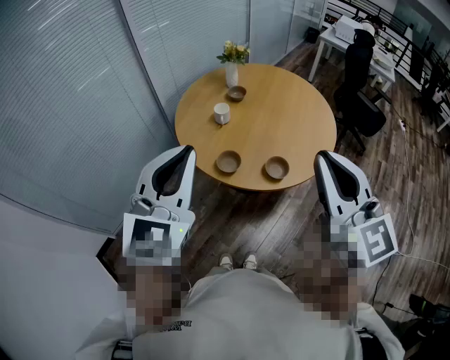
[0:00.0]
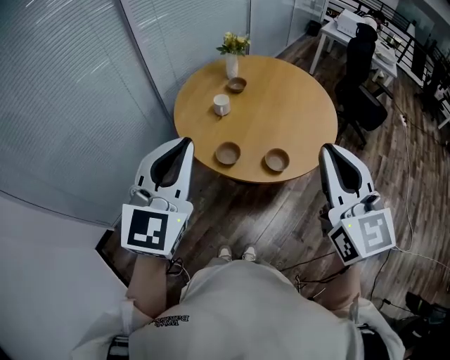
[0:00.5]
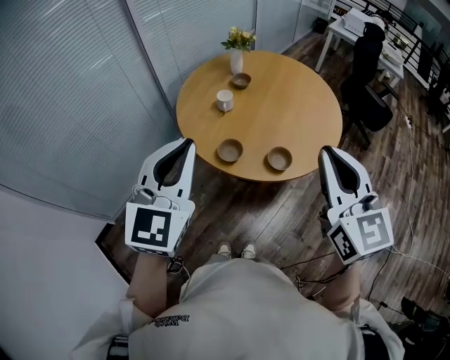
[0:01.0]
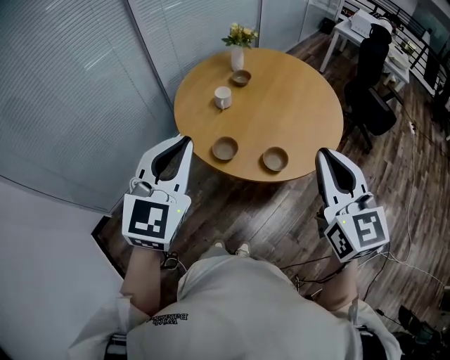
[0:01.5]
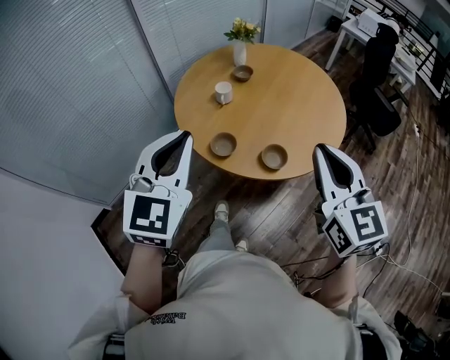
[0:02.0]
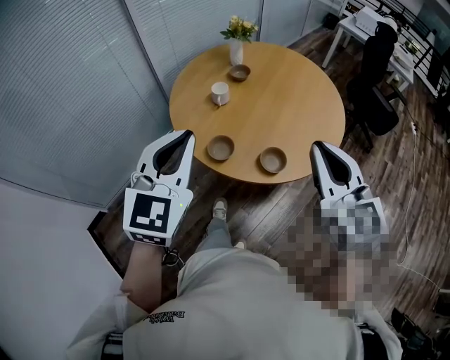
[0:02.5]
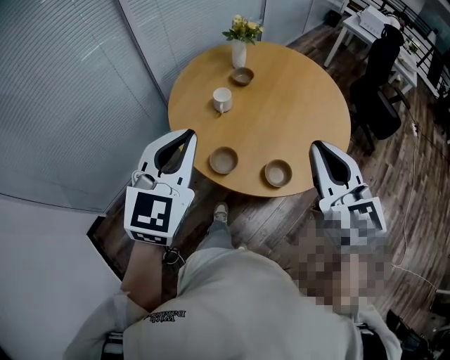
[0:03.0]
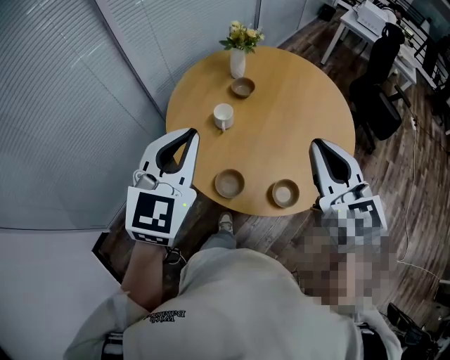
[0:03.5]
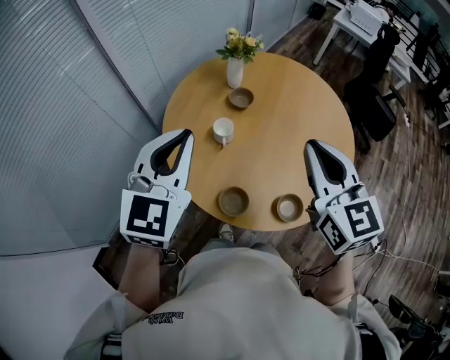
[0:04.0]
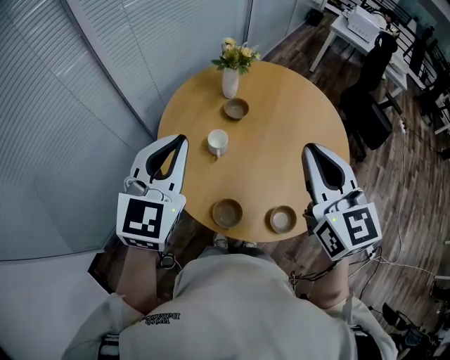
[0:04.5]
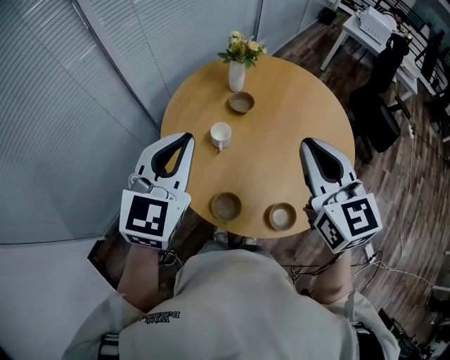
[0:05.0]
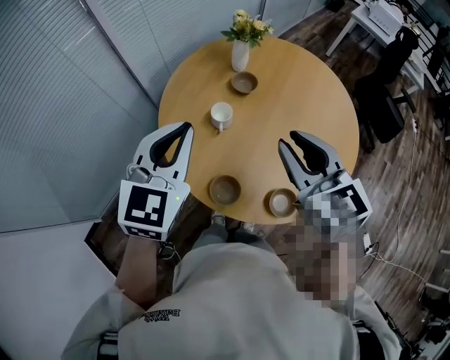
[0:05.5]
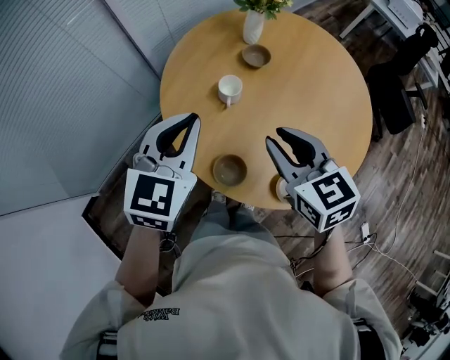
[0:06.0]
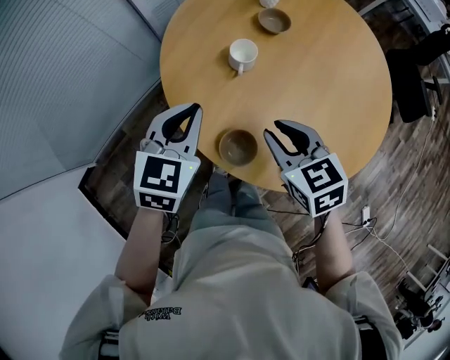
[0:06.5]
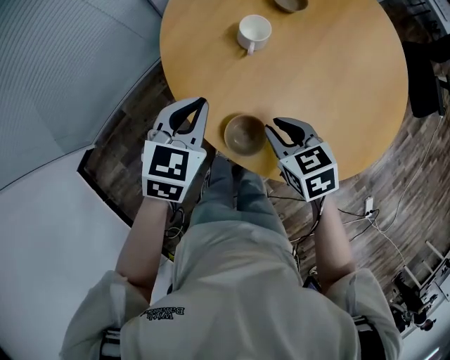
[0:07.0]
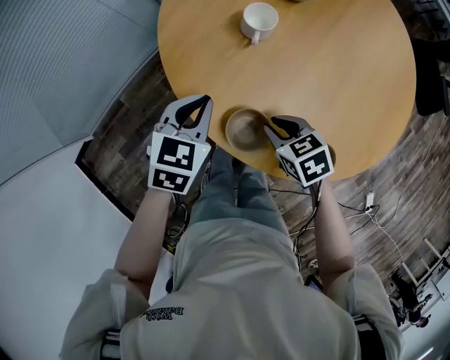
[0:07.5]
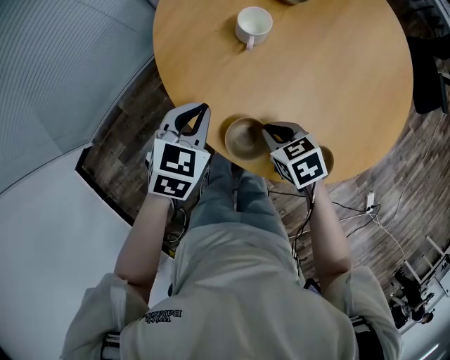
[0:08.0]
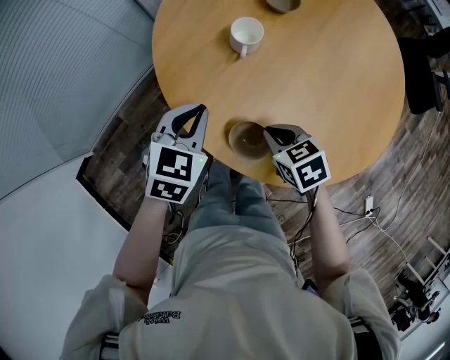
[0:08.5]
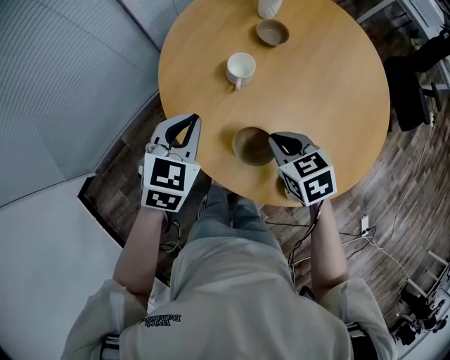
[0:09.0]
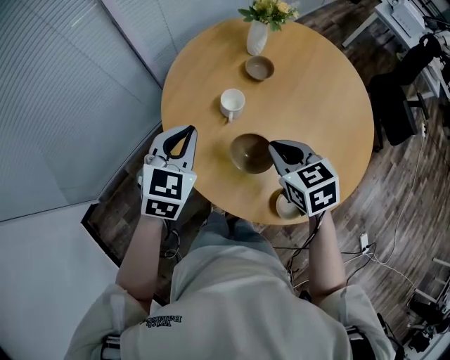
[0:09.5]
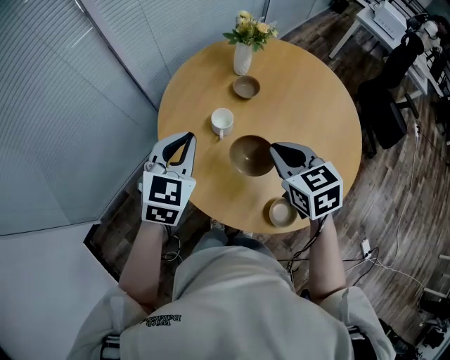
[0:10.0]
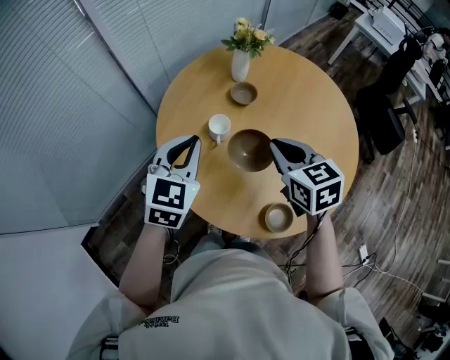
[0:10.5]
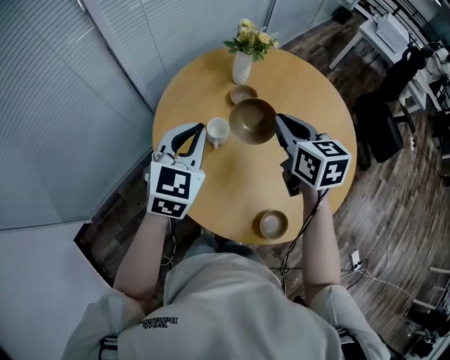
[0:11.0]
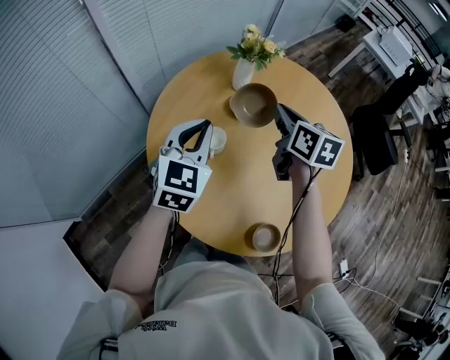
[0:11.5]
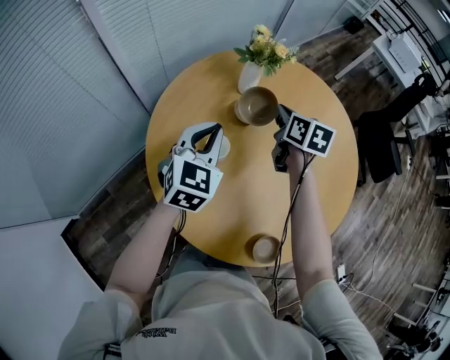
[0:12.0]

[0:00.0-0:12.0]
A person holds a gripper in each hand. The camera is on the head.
0:00.0 to 0:02.0: The right gripper goes approximately 10 cm downward, to the right and forward, while the left gripper goes about 5 cm downward.
0:02.0 to 0:04.0: Both grippers travel together forward, some 30 cm.
0:04.0 to 0:06.0: The left gripper shifts approximately 10 cm downward, while the right gripper heads downward and to the left, covering approximately 15 cm, and turns by roughly 30 degrees.
0:06.0 to 0:08.0: The grippers both shift downward by about 30 cm. The left gripper swivels some 30 degrees. Meanwhile the right gripper angles its fingers downward, by approximately 30 degrees.
0:08.0 to 0:10.0: Both grippers move upward, roughly 25 cm. The left gripper changes its angle by roughly 20 degrees; the right gripper rotates some 30 degrees.
0:10.0 to 0:12.0: The right gripper heads forward, covering approximately 25 cm, and turns by roughly 30 degrees. Meanwhile the left gripper heads forward and to the right, covering some 15 cm.

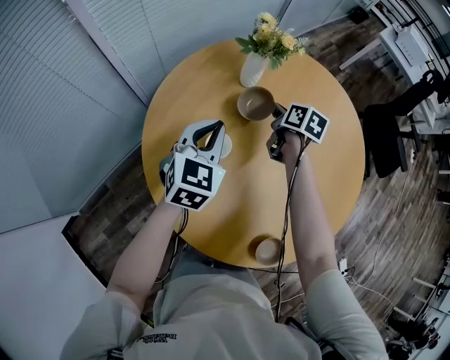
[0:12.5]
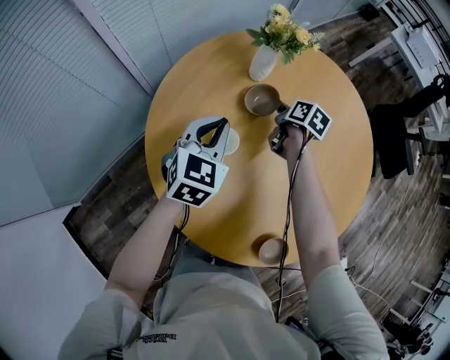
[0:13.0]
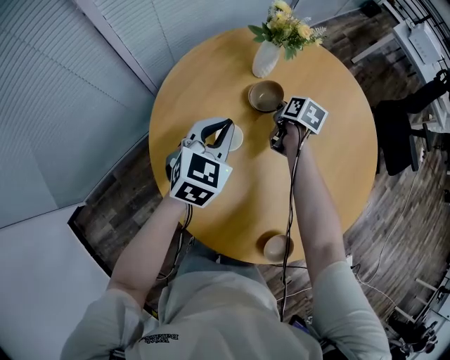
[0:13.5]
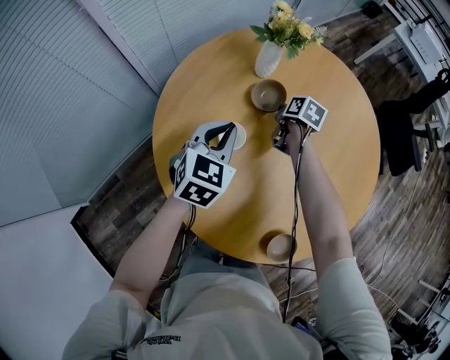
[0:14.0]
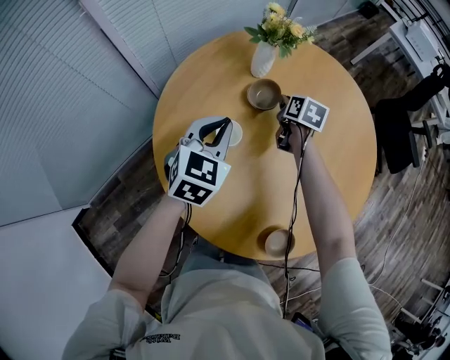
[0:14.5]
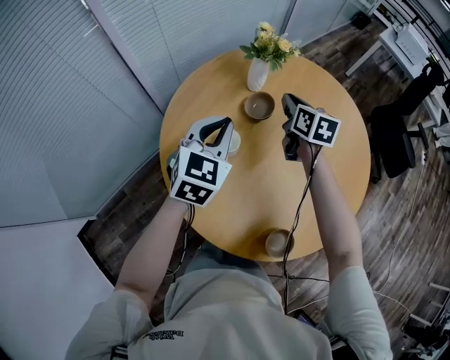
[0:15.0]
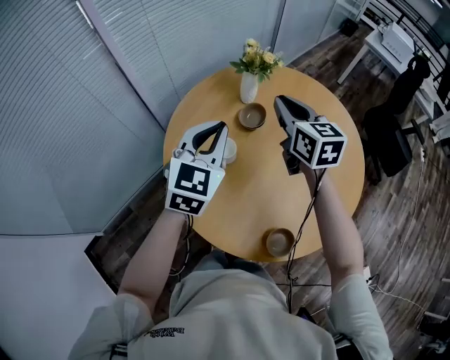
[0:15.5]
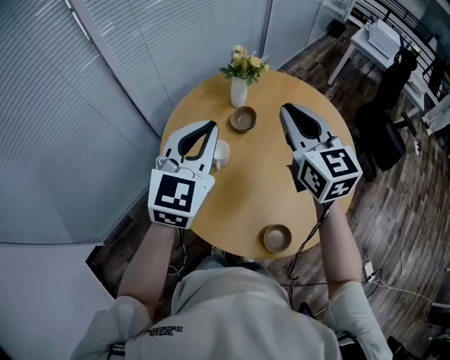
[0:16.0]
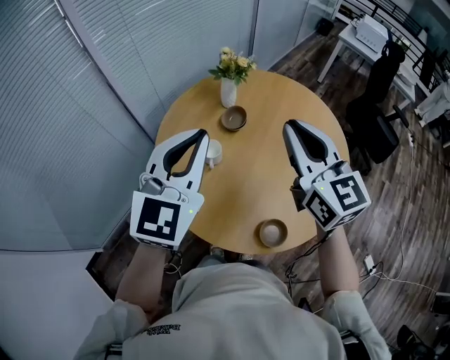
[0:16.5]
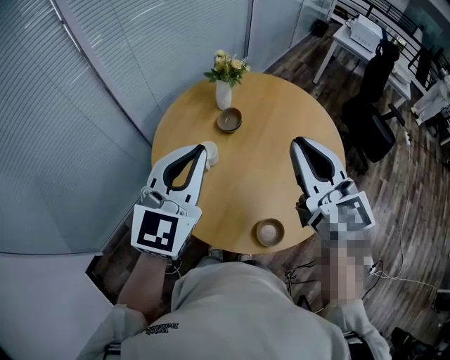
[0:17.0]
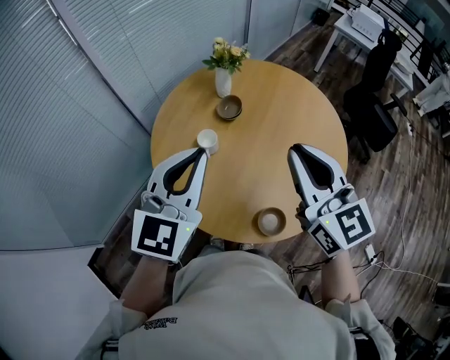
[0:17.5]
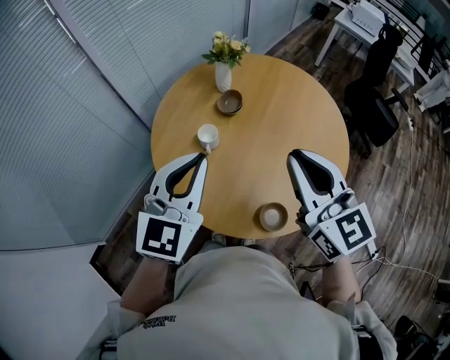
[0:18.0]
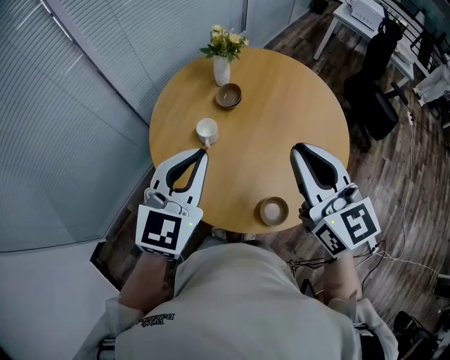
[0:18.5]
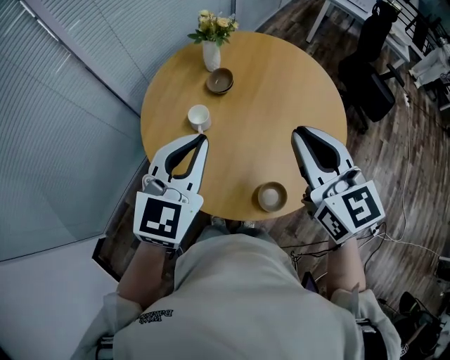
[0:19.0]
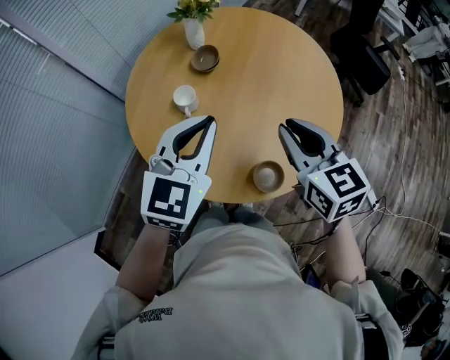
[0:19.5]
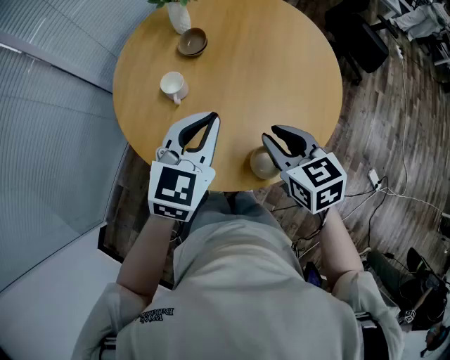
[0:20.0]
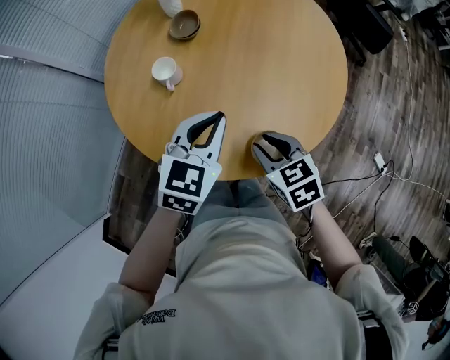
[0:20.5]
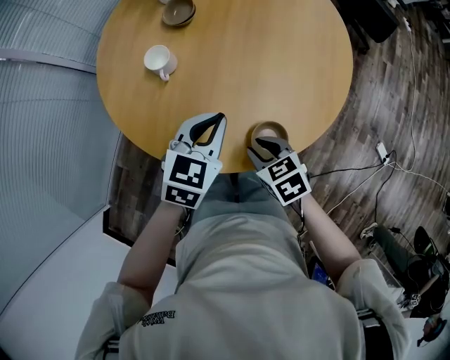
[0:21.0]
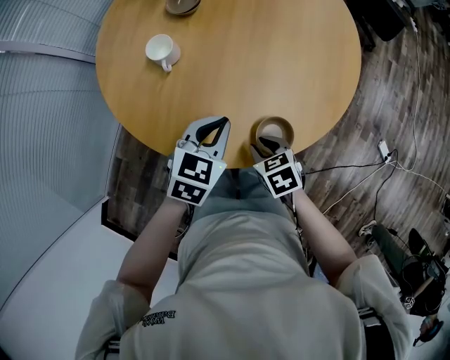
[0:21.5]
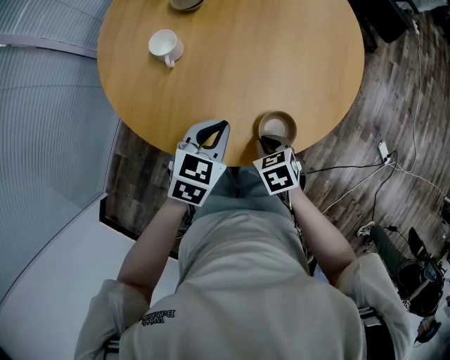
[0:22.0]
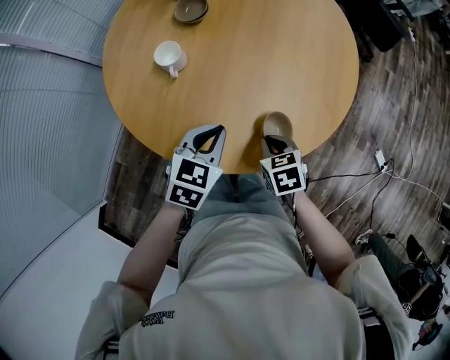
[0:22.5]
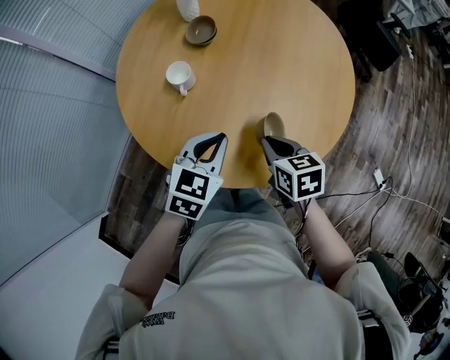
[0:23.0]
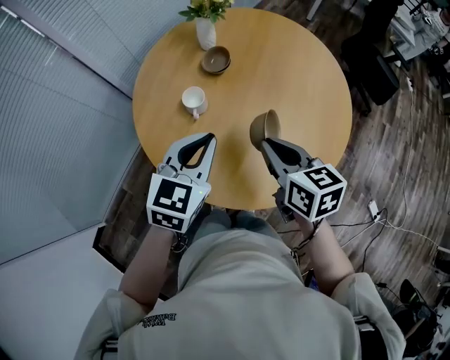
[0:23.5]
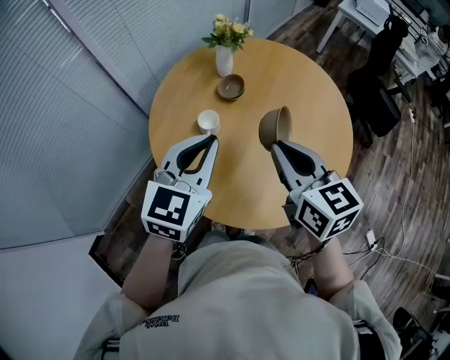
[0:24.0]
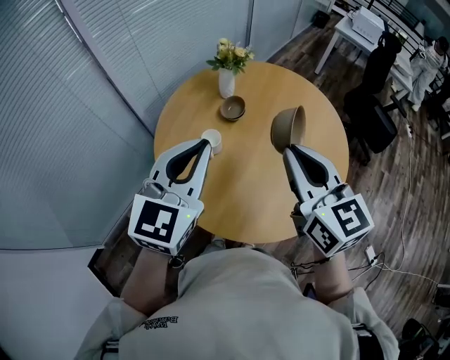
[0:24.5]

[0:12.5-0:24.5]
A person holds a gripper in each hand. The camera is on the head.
0:14.5 to 0:16.5: The left gripper is displaced upward and backward by roughly 30 cm, and rotates some 30 degrees. Meanwhile the right gripper is displaced upward and backward by roughly 50 cm, and tips its fingers upward by some 40 degrees.
0:16.5 to 0:18.5: The left gripper heads downward and backward, covering roughly 10 cm. The right gripper shifts approximately 10 cm backward.
0:18.5 to 0:20.5: The right gripper is displaced downward by approximately 30 cm, and tilts its fingers some 40 degrees downward. The left gripper moves downward and to the right, some 20 cm, and turns by approximately 20 degrees.
0:20.5 to 0:22.5: The grippers both shift downward by some 10 cm.
0:22.5 to 0:24.5: Both grippers move upward, approximately 35 cm. The right gripper tips its fingers upward by approximately 50 degrees. The left gripper tilts its fingers some 30 degrees upward.

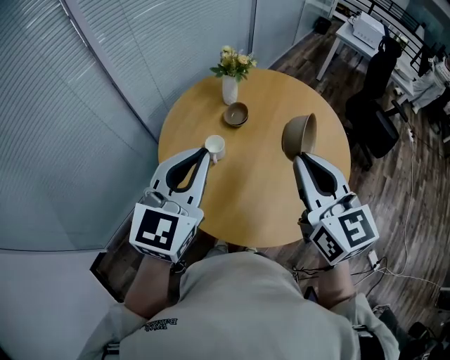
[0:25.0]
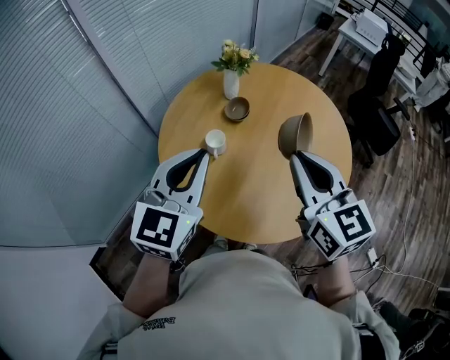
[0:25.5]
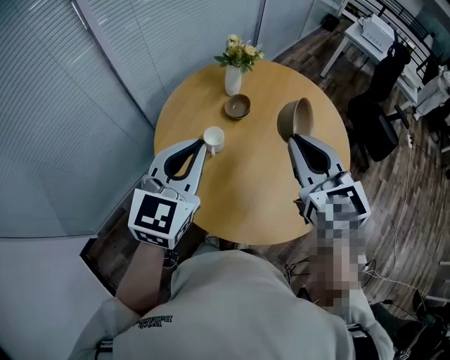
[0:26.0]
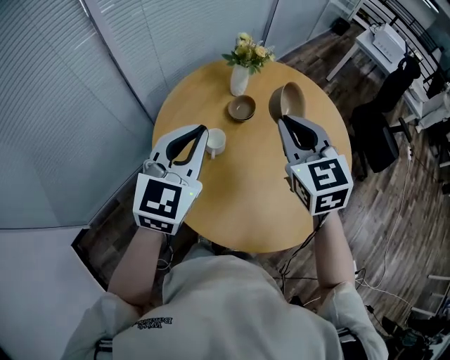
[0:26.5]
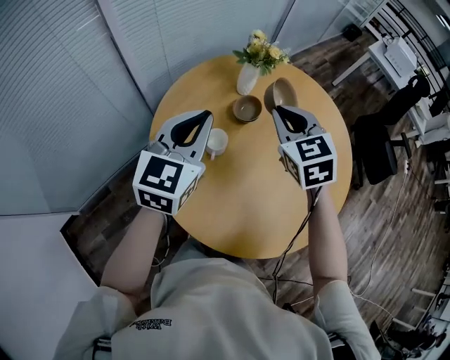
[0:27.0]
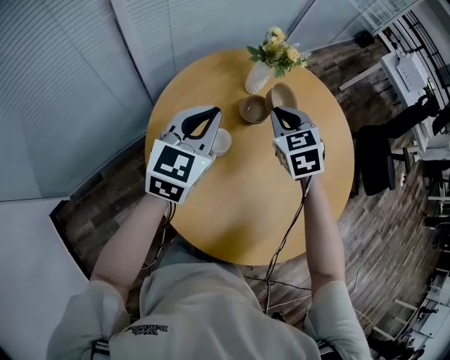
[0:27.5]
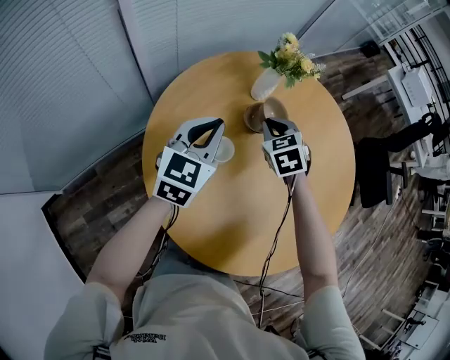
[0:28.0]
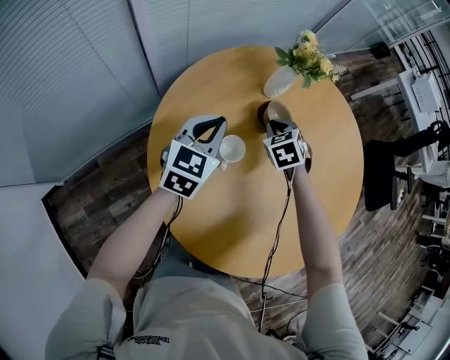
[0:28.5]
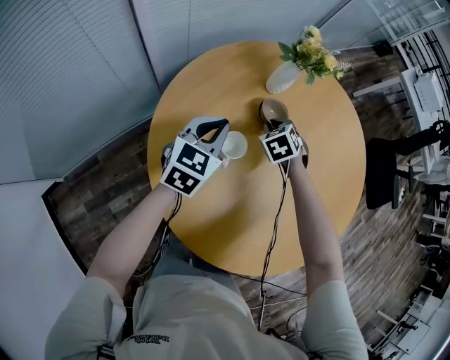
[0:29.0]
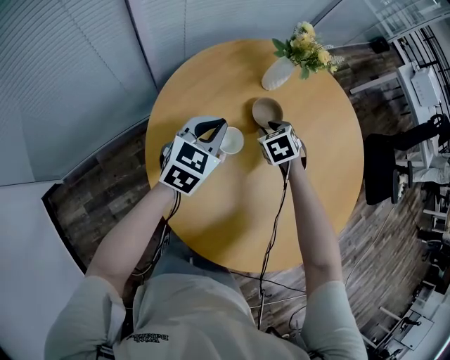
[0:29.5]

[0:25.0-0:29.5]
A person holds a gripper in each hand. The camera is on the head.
0:25.0 to 0:27.0: The right gripper shifts roughly 25 cm forward and downward, and rotates roughly 30 degrees. The left gripper shifts roughly 15 cm forward and downward.
0:27.0 to 0:29.5: Both grippers travel together downward, roughly 25 cm. The right gripper points its fingers roughly 30 degrees further downward.
